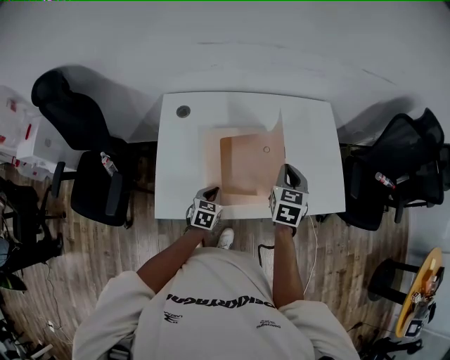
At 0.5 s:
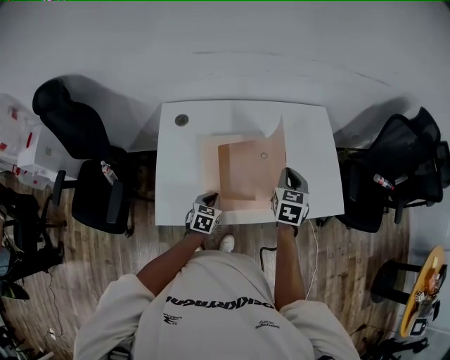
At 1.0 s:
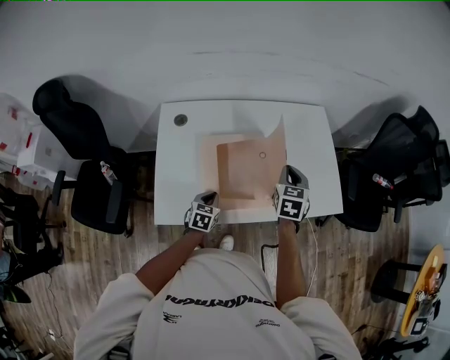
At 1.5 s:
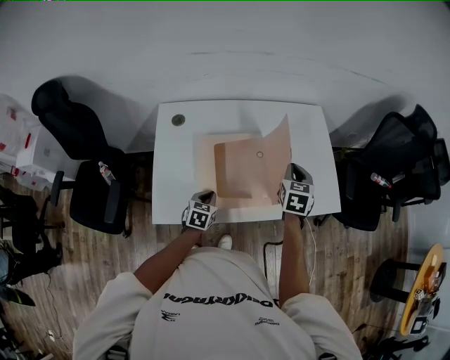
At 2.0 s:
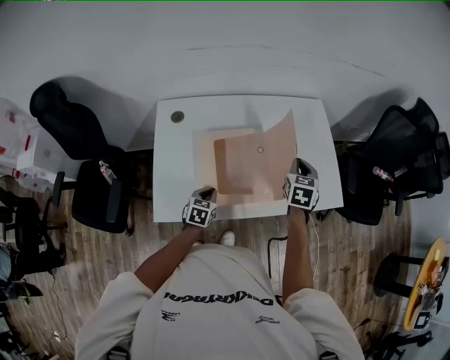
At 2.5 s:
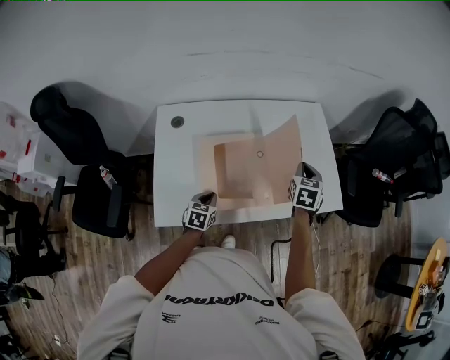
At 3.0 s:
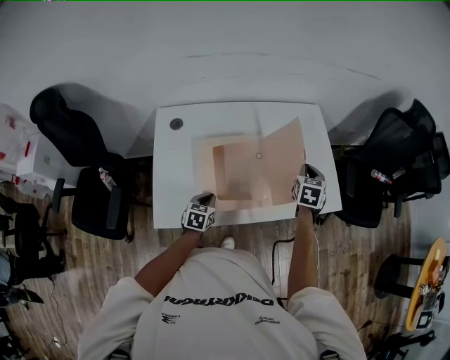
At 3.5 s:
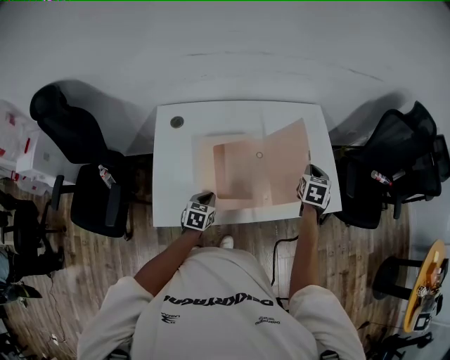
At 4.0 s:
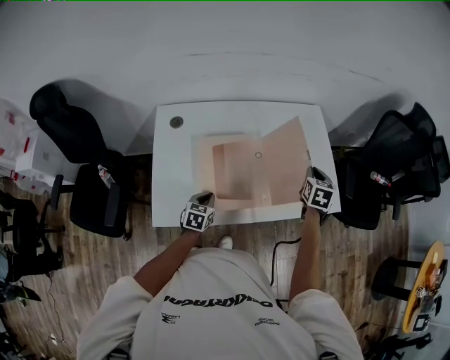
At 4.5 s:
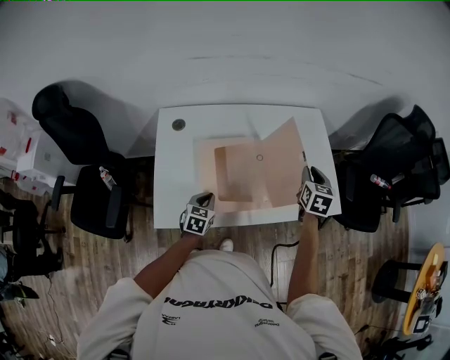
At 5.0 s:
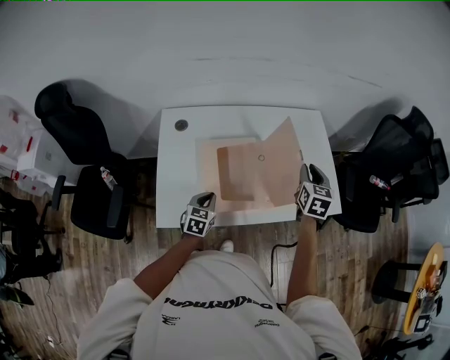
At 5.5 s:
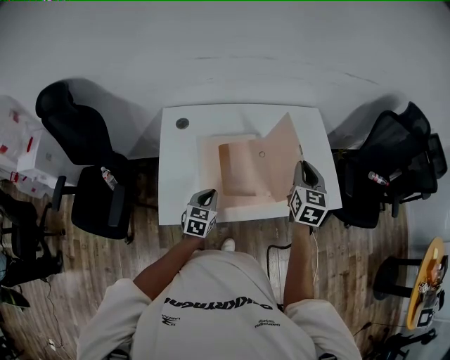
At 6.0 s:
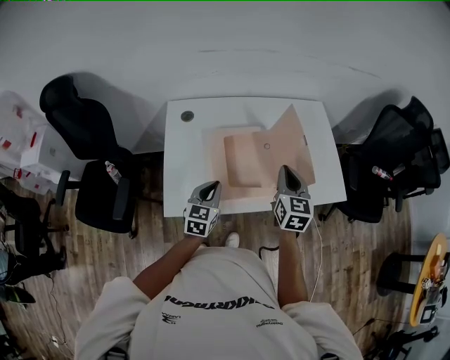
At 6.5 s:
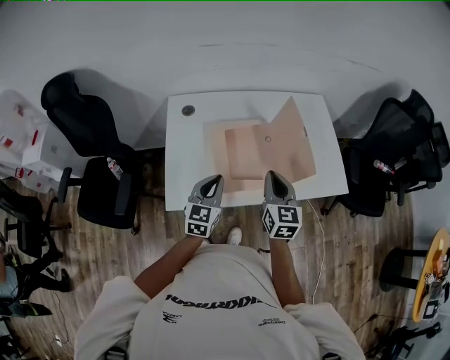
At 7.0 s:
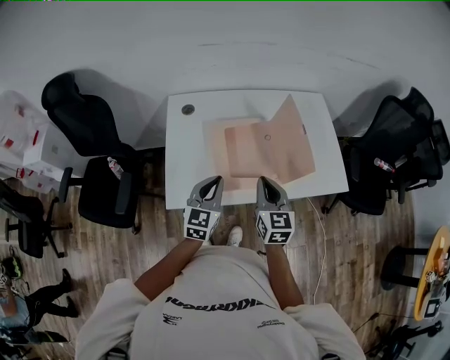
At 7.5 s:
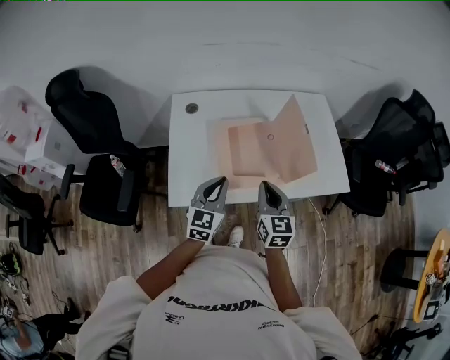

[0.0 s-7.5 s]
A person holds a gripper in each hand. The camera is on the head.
0.0 to 2.0 s: The right gripper moves to the right, some 5 cm.
2.0 to 4.0 s: The right gripper travels to the right by approximately 5 cm.
4.0 to 5.5 s: The left gripper is displaced upward by roughly 5 cm. The right gripper heads upward, to the left and backward, covering about 15 cm, and changes its angle by approximately 20 degrees.
5.5 to 7.5 s: The left gripper moves upward and backward, about 15 cm. Meanwhile the right gripper moves backward, to the left and downward, some 20 cm.

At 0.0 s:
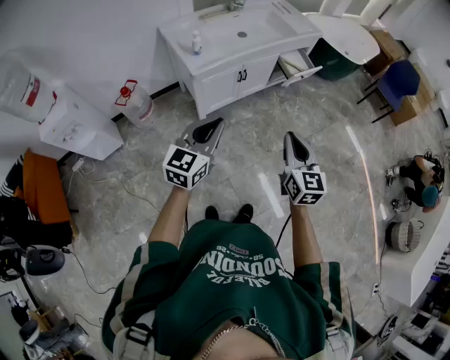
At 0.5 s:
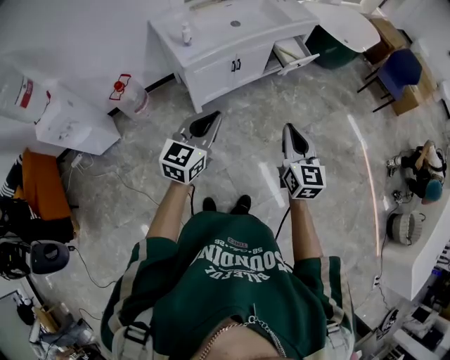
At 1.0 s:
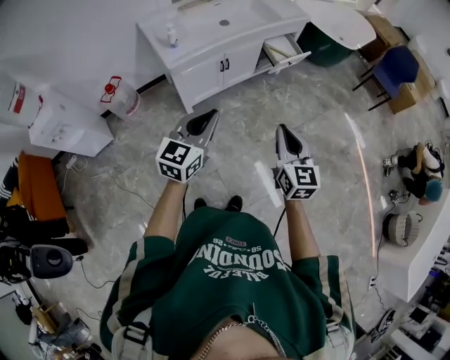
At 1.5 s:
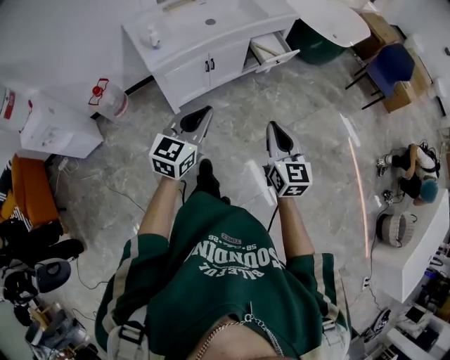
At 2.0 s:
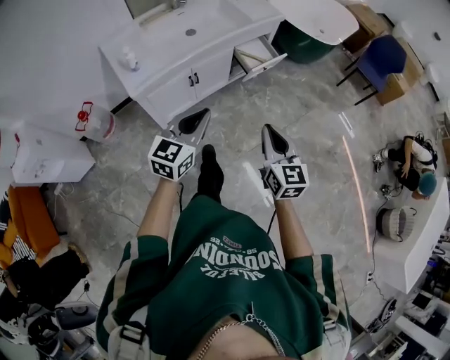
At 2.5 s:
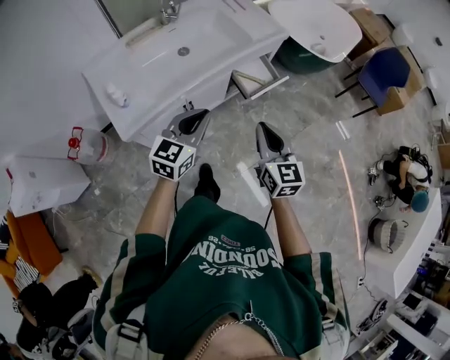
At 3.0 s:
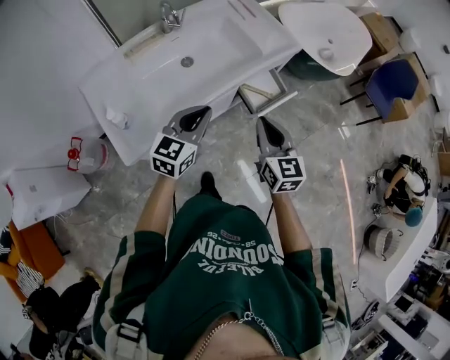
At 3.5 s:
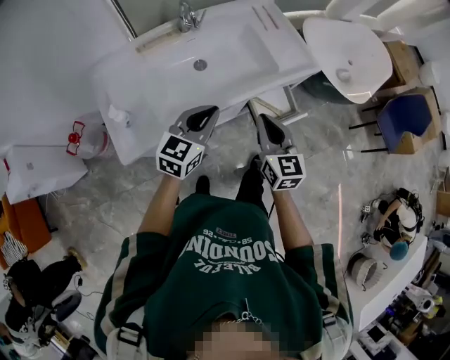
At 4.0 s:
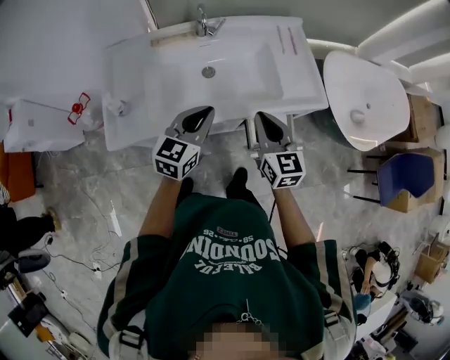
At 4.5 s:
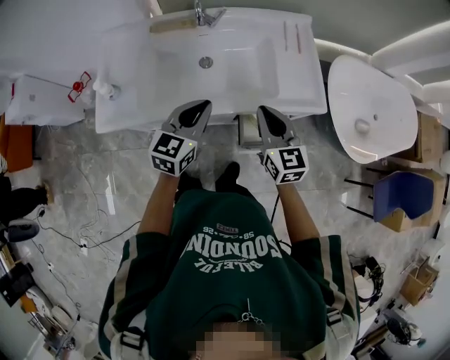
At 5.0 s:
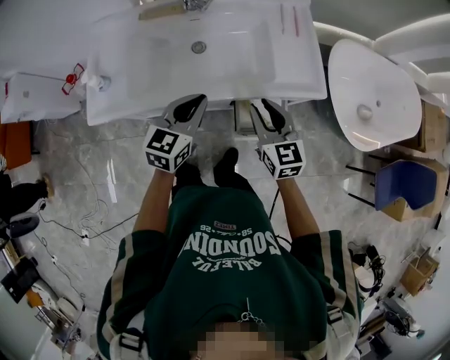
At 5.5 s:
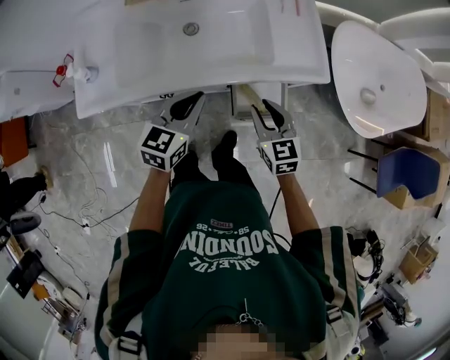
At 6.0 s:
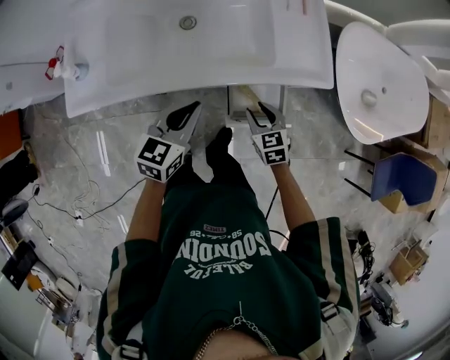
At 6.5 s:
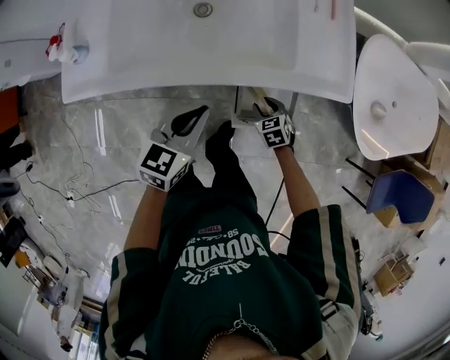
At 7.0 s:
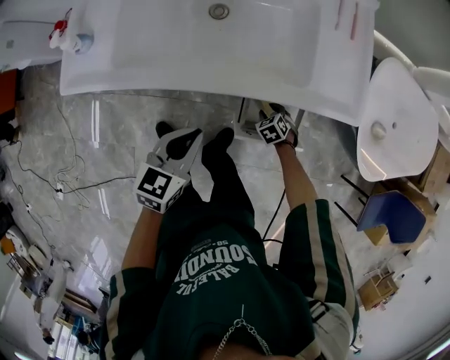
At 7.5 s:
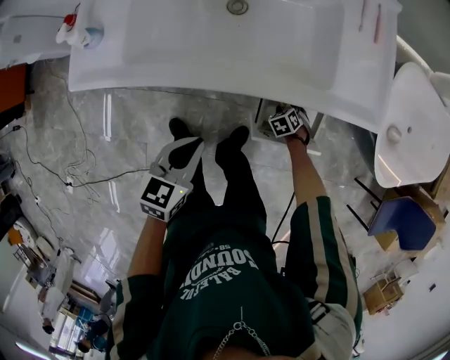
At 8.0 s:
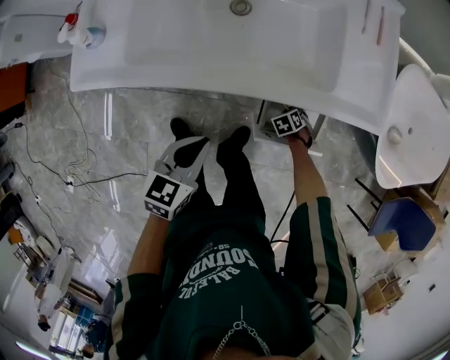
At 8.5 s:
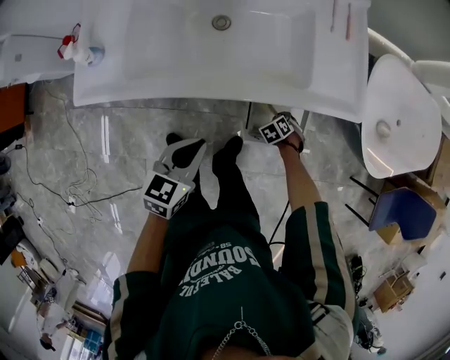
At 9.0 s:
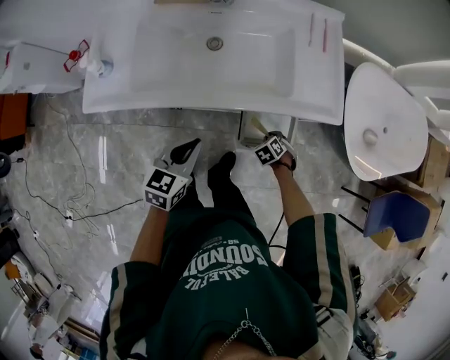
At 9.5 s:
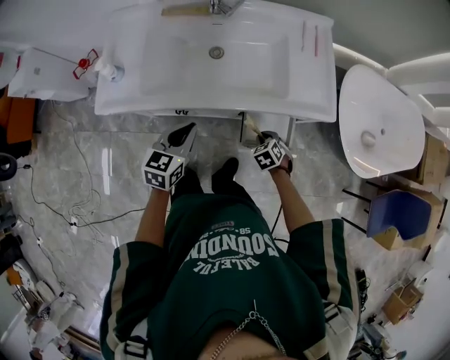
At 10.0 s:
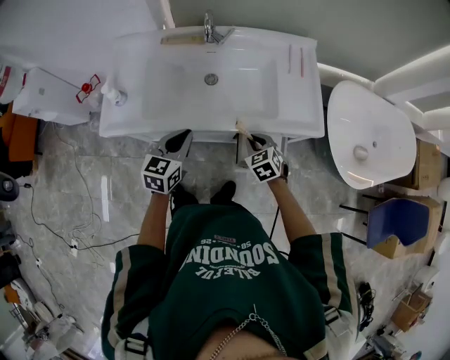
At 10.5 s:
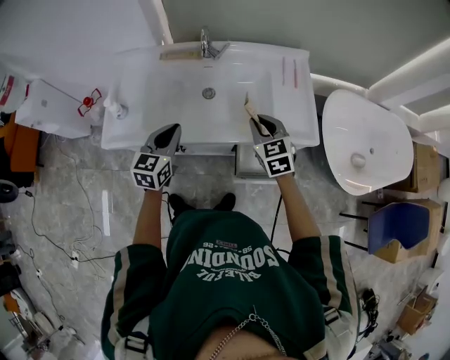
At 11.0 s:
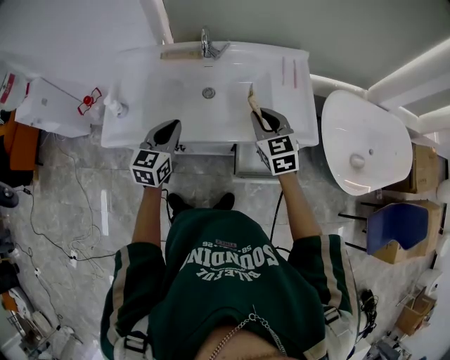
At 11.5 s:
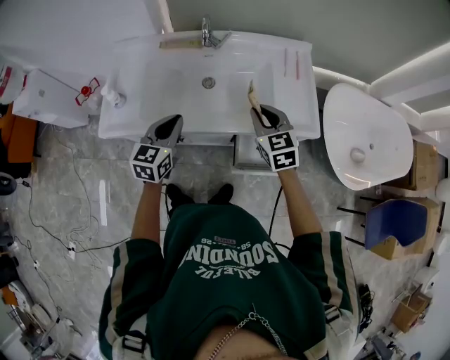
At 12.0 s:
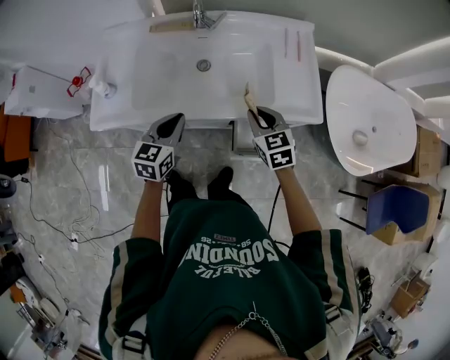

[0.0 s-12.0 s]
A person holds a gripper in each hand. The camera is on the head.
0.0 to 2.0 s: Both grippers move forward and to the right, about 25 cm.
2.0 to 4.0 s: The pair of grippers is taken approximately 50 cm. The left gripper turns by approximately 30 degrees; the right gripper swivels about 30 degrees.
4.0 to 6.0 s: The left gripper shifts approximately 15 cm downward and to the right. The right gripper goes approximately 30 cm downward and to the right, turns by roughly 30 degrees, and opens its fingers.
6.0 to 8.0 s: The right gripper travels downward by approximately 30 cm, and angles its fingers downward, by roughly 40 degrees; the left gripper changes place by some 15 cm.
8.0 to 10.0 s: The left gripper goes roughly 15 cm upward. Meanwhile the right gripper moves upward, about 35 cm, and points its fingers some 30 degrees further upward.
10.0 to 12.0 s: The right gripper shifts roughly 10 cm upward.

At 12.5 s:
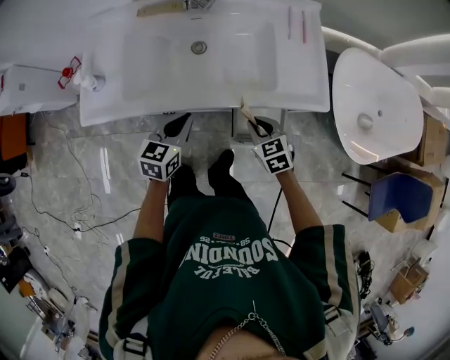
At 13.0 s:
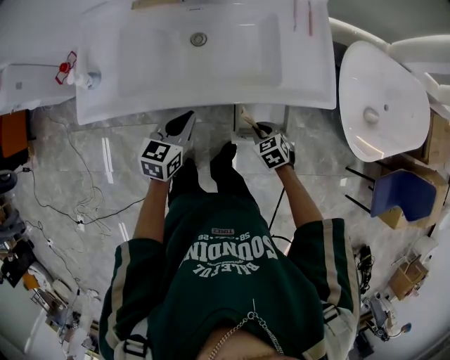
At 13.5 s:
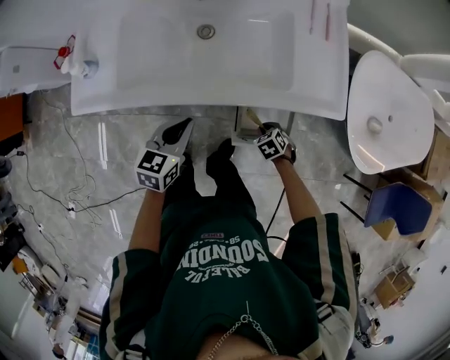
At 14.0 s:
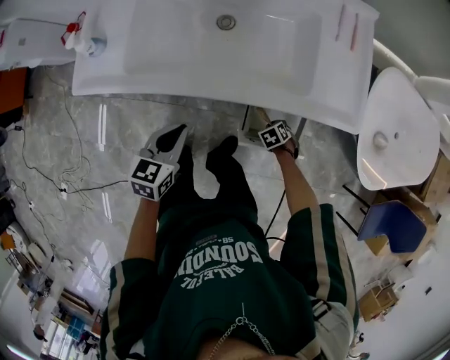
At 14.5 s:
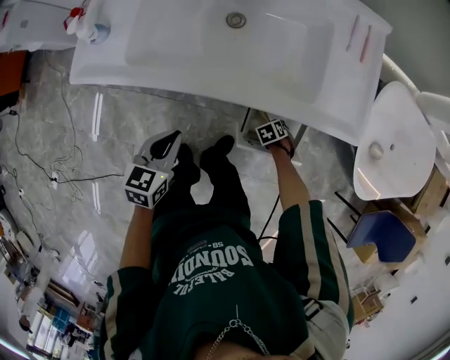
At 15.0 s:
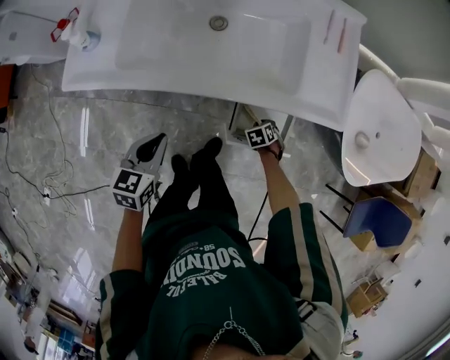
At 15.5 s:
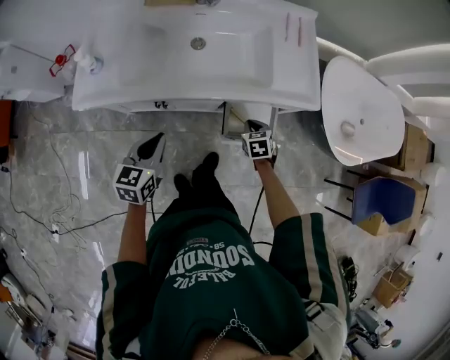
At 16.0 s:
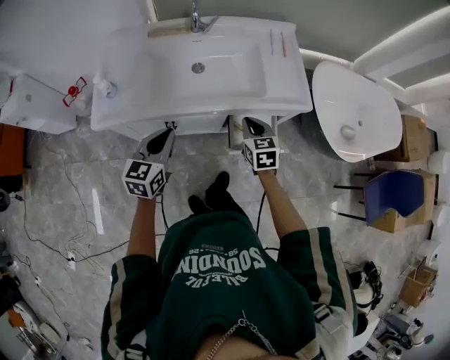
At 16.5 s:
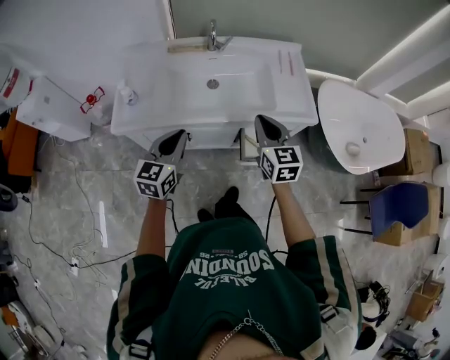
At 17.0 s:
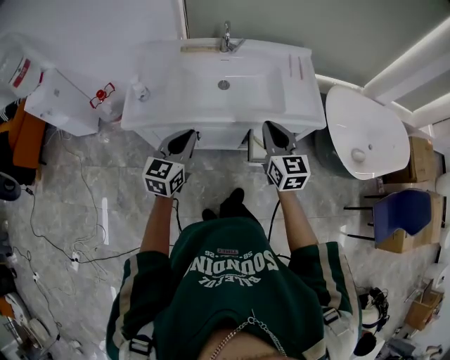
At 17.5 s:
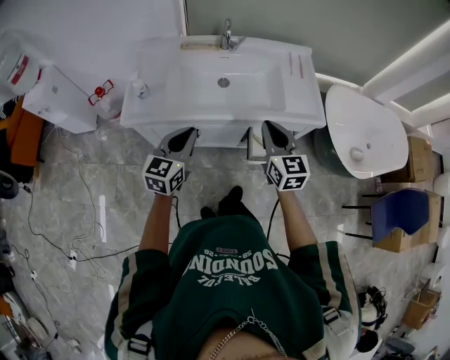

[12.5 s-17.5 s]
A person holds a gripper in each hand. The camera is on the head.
12.5 to 15.0 s: The left gripper ends up about 15 cm from where it was; the right gripper heads downward, covering approximately 30 cm, and tips its fingers downward by about 40 degrees.
15.0 to 17.5 s: The left gripper is displaced upward by about 20 cm, and rotates roughly 30 degrees. Meanwhile the right gripper shifts about 50 cm upward, and angles its fingers upward, by some 70 degrees.

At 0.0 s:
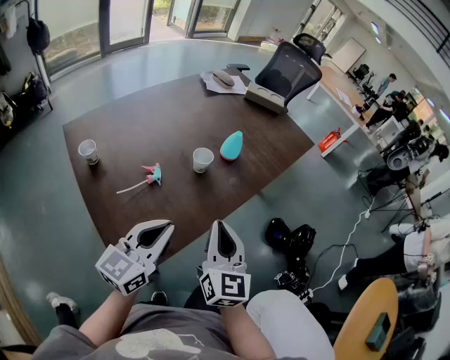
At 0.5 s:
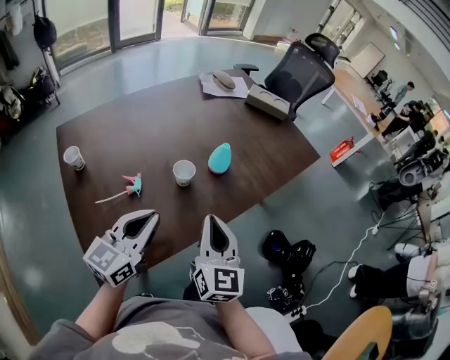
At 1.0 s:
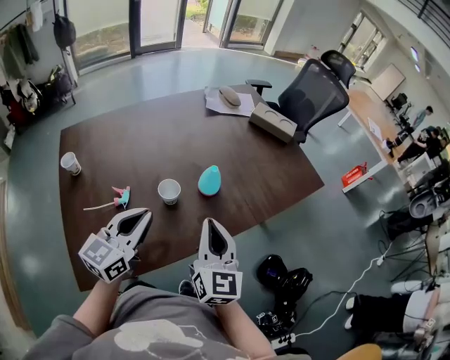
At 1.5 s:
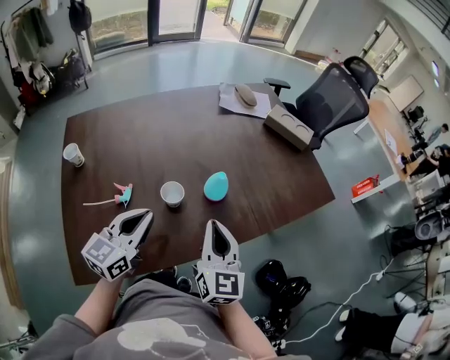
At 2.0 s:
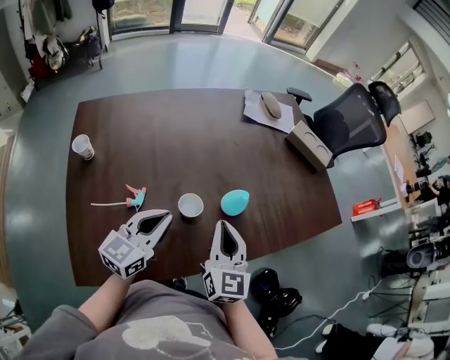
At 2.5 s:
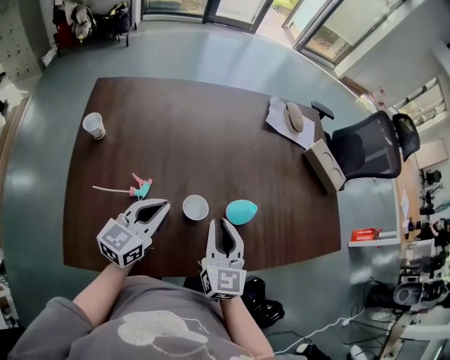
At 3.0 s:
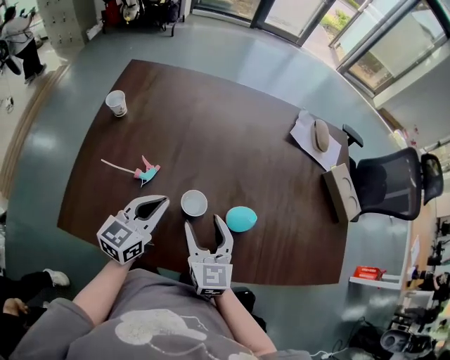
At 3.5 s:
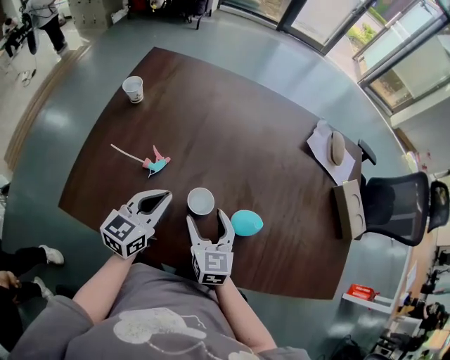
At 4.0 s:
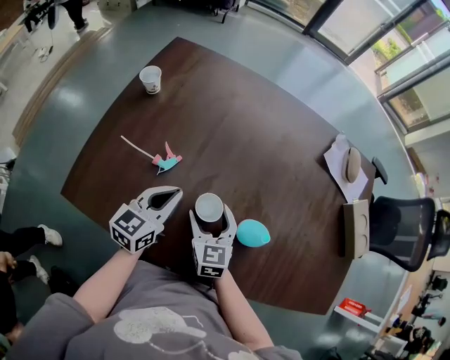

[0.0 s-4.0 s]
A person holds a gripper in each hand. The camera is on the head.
0.0 to 2.0 s: The two grippers go roughly 25 cm forward. The left gripper rotates approximately 20 degrees. The right gripper changes its angle by roughly 20 degrees.
2.0 to 4.0 s: The right gripper moves downward, roughly 15 cm, changes its angle by roughly 50 degrees, and opens its fingers; the left gripper travels downward by some 10 cm, and turns by approximately 40 degrees.
